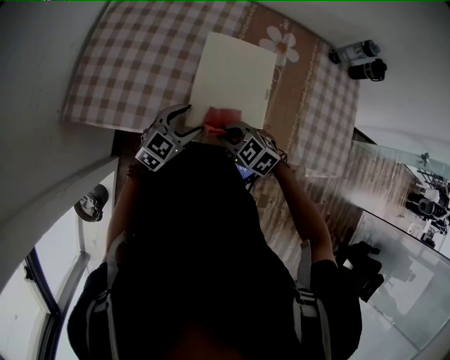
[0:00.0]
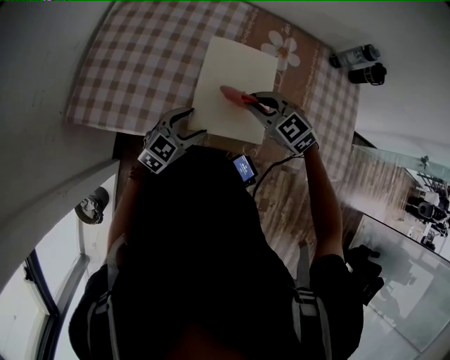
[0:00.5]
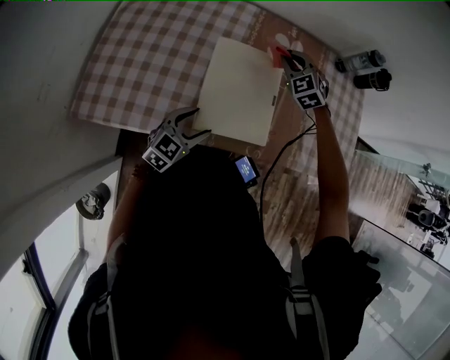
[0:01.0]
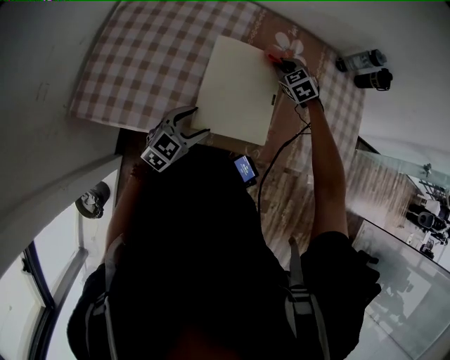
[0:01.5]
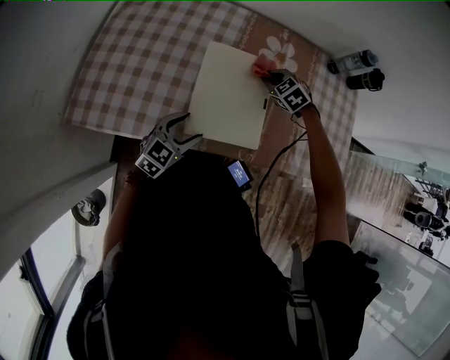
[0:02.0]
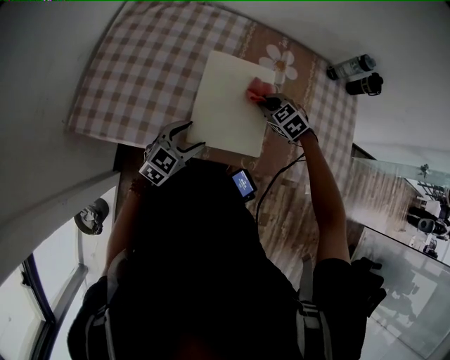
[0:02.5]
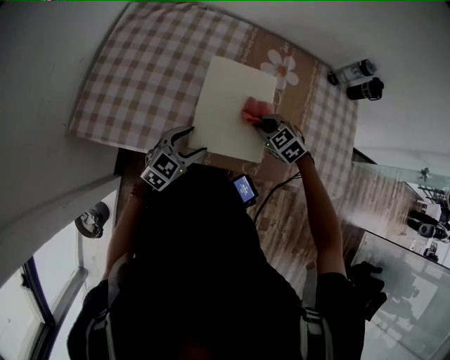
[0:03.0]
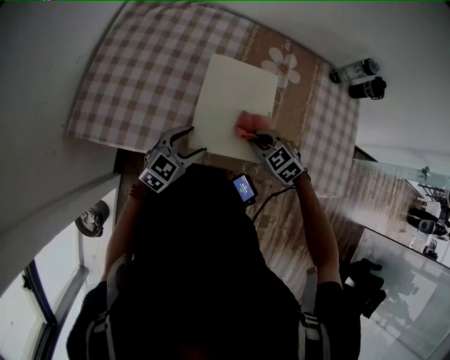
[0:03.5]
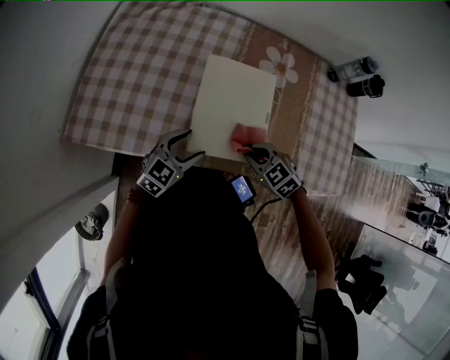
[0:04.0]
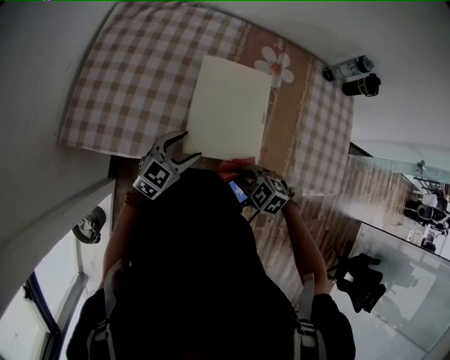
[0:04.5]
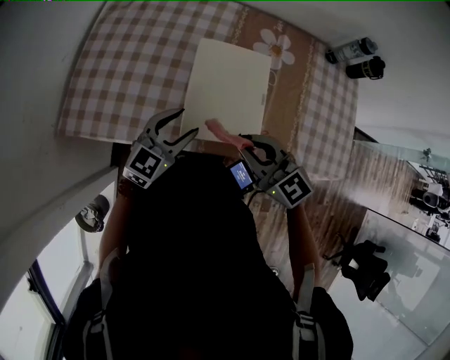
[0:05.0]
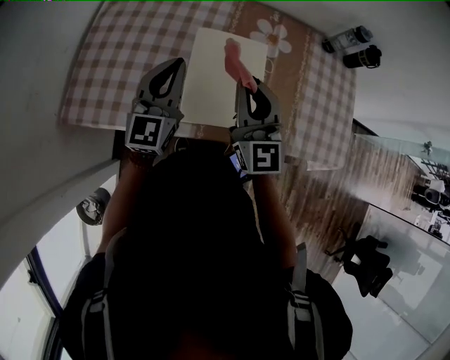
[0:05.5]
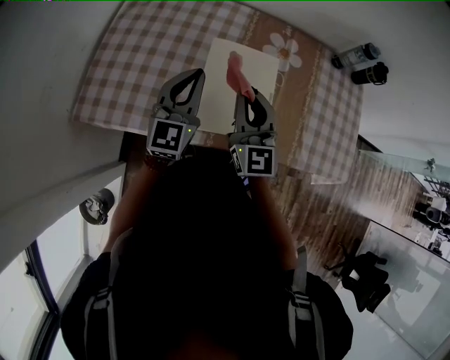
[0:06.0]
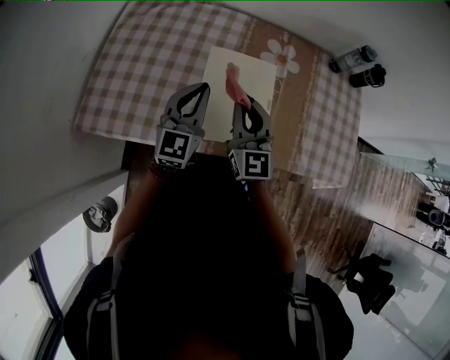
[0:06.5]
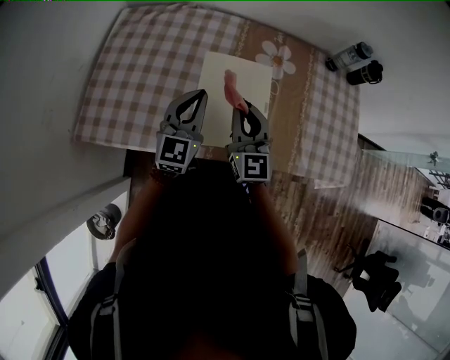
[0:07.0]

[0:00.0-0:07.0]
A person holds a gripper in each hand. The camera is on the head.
0:00.0 to 0:02.0: The right gripper reaches some 10 cm upward, then returns, and turns by about 20 degrees.
0:02.0 to 0:03.5: The right gripper travels backward by some 15 cm.
0:03.5 to 0:05.0: The left gripper moves upward, roughly 5 cm. Meanwhile the right gripper heads upward, covering about 15 cm, and angles its fingers upward, by roughly 30 degrees.
0:05.0 to 0:07.0: The left gripper travels upward and forward by some 10 cm, rotates about 20 degrees, and closes up. Meanwhile the right gripper goes approximately 10 cm forward, and rotates some 40 degrees.

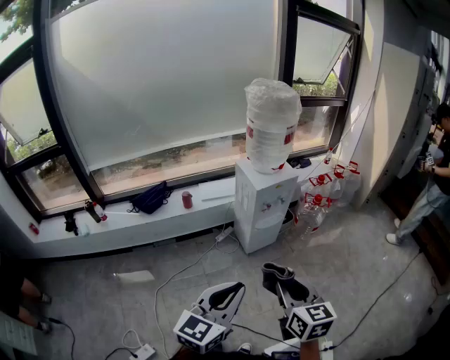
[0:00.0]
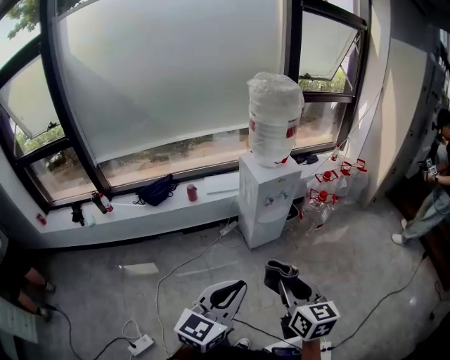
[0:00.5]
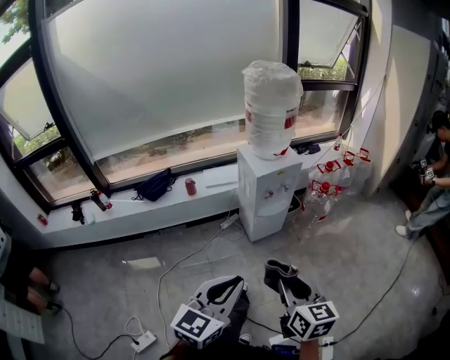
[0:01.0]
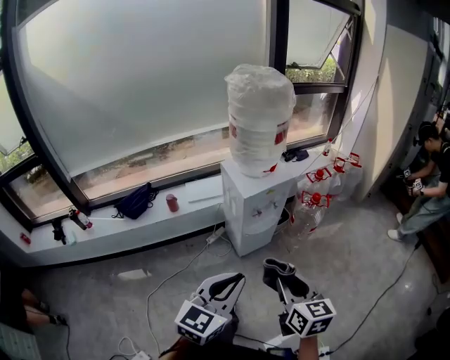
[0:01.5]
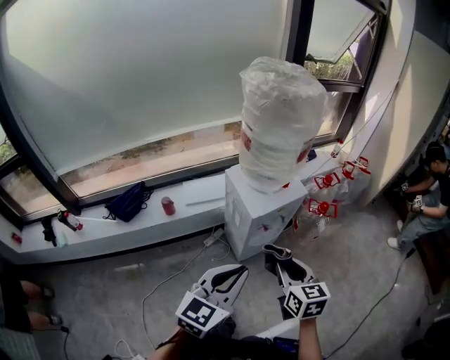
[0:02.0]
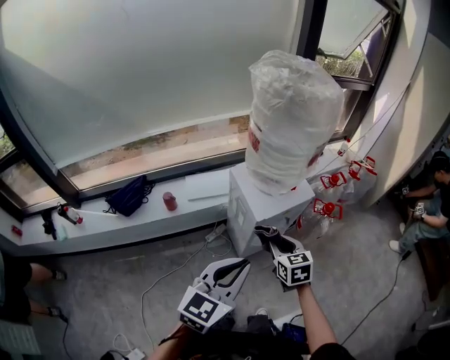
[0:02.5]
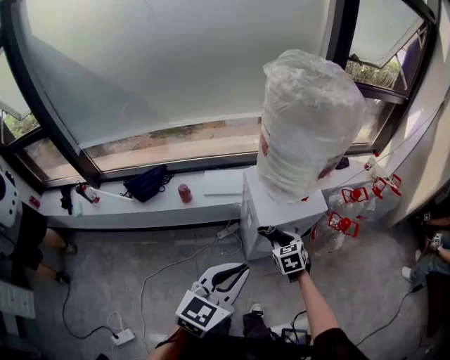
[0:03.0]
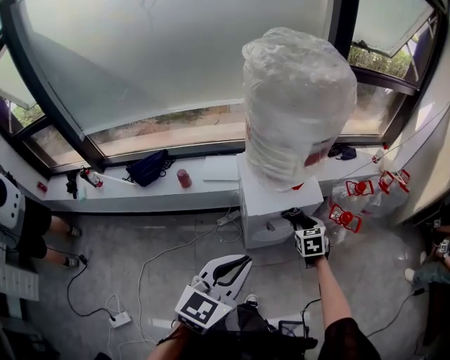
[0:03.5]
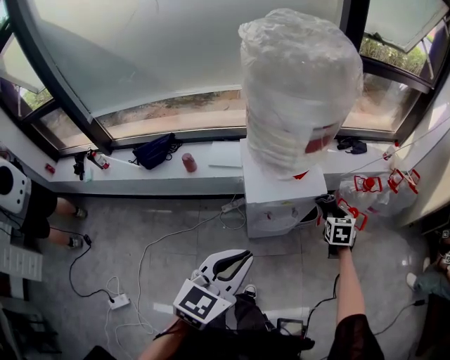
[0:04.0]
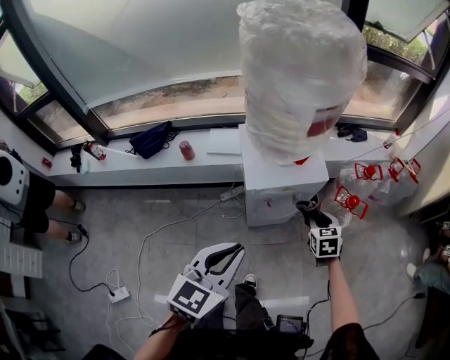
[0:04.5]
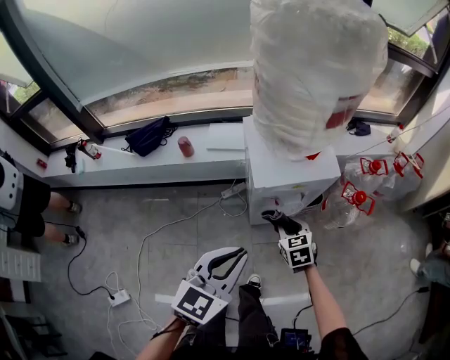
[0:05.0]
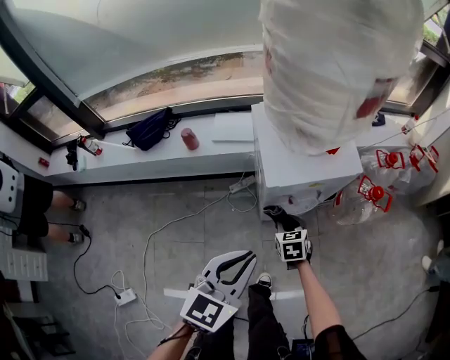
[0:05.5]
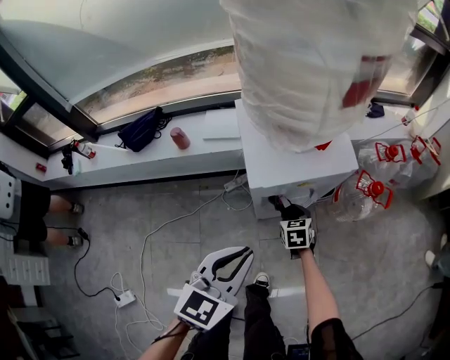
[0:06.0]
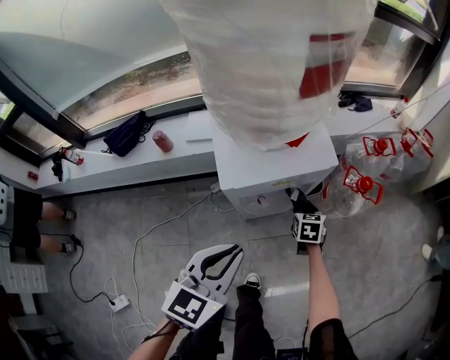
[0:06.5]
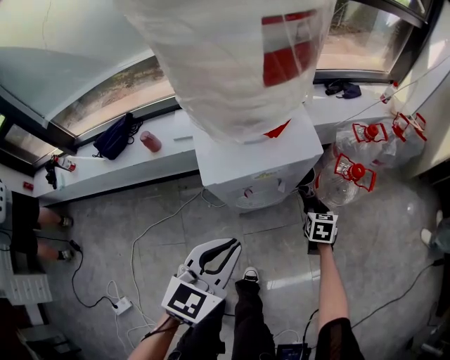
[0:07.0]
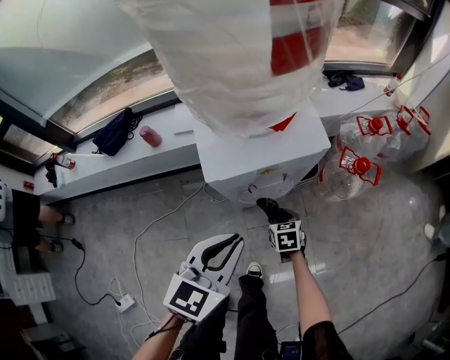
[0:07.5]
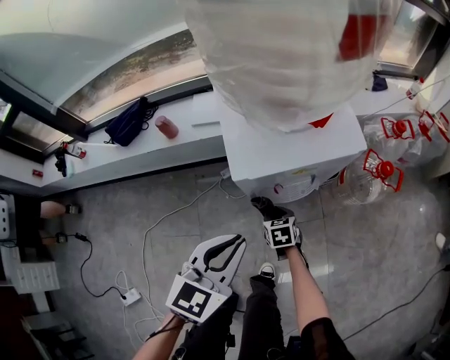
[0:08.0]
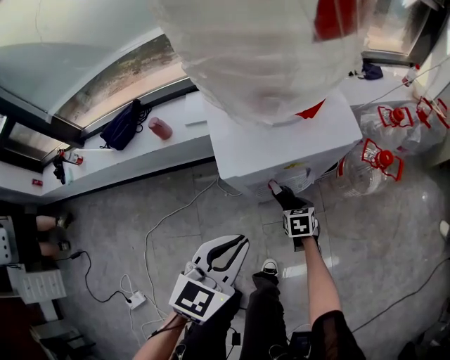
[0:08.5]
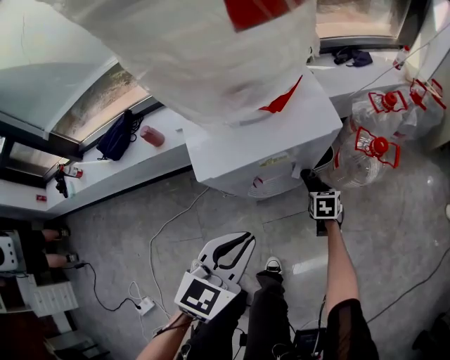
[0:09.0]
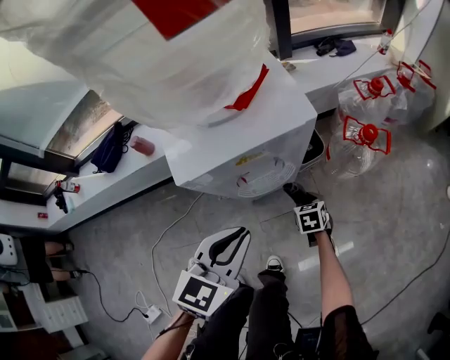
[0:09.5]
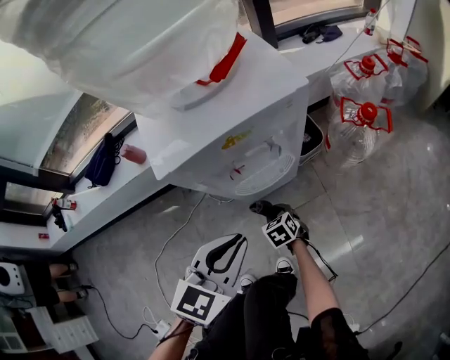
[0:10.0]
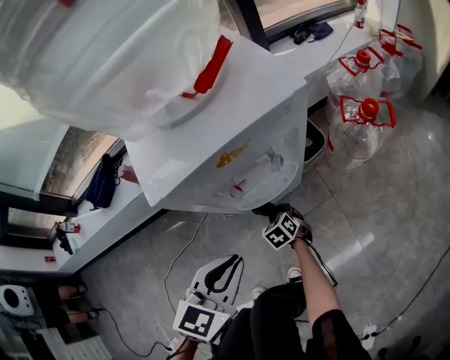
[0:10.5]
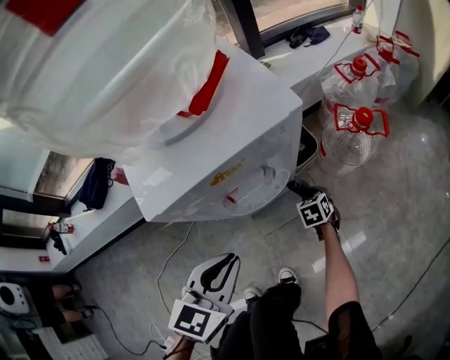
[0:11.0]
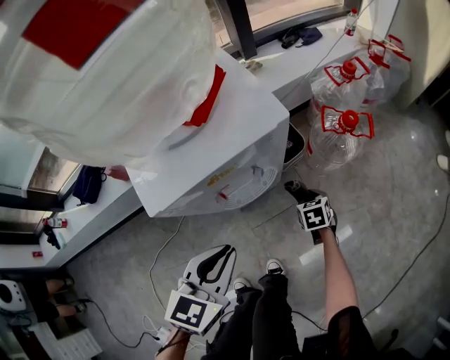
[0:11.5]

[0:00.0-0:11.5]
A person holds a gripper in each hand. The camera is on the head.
0:00.0 to 0:02.0: The grippers both shift forward by about 35 cm.
0:02.0 to 0:04.0: The left gripper travels to the right and forward by some 15 cm, and changes its angle by approximately 20 degrees. The right gripper heads forward, to the right and downward, covering roughly 40 cm, and changes its angle by approximately 20 degrees.
0:04.0 to 0:06.0: The left gripper moves downward, roughly 15 cm, while the right gripper heads downward and to the left, covering about 30 cm.
0:06.0 to 0:07.5: The right gripper heads downward, covering roughly 5 cm, and goes to the right and returns, approximately 20 cm each way. The left gripper heads to the right, covering roughly 5 cm.
0:07.5 to 0:09.5: The left gripper heads downward, covering roughly 10 cm. Meanwhile the right gripper travels to the right and downward by about 15 cm.
0:09.5 to 0:11.5: The right gripper goes to the left and returns, approximately 15 cm each way.

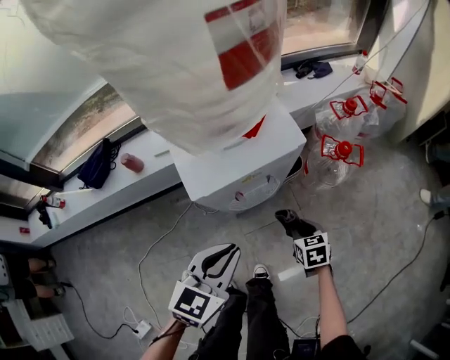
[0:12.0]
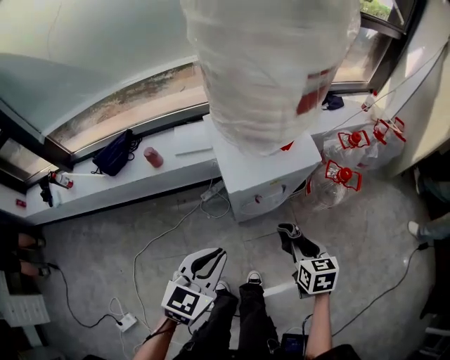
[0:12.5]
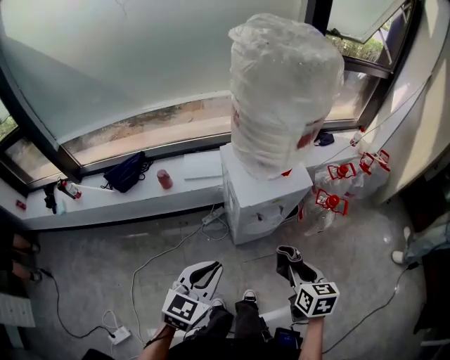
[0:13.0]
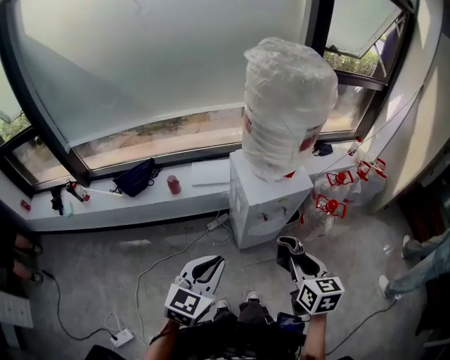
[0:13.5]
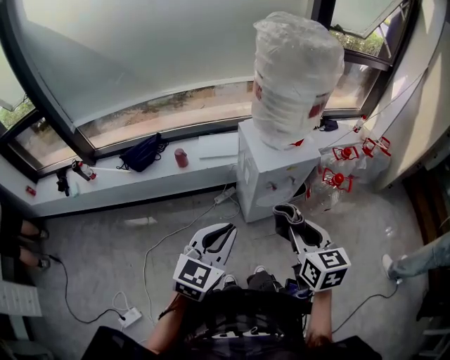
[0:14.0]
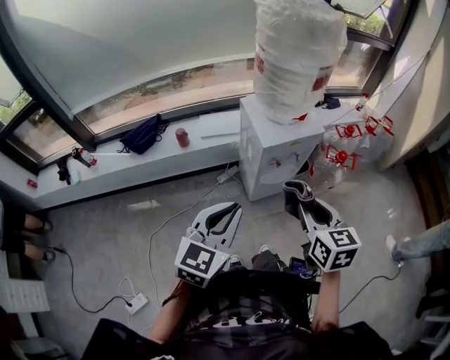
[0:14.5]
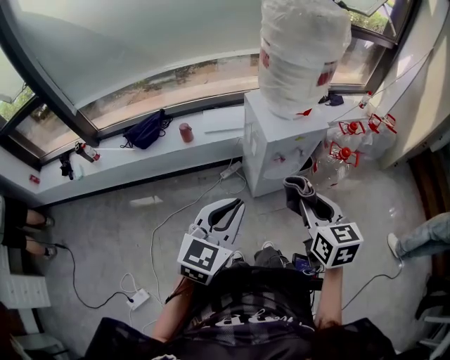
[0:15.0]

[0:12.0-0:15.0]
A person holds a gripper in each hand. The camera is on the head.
0:12.0 to 0:13.5: The left gripper goes approximately 30 cm upward, to the left and backward, while the right gripper moves upward and backward, about 40 cm, and swivels about 20 degrees.
0:13.5 to 0:15.0: The right gripper shifts by roughly 5 cm. The left gripper changes place by roughly 5 cm.

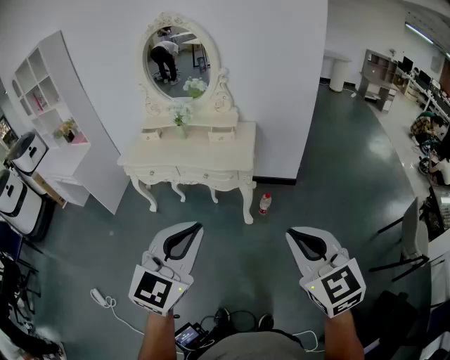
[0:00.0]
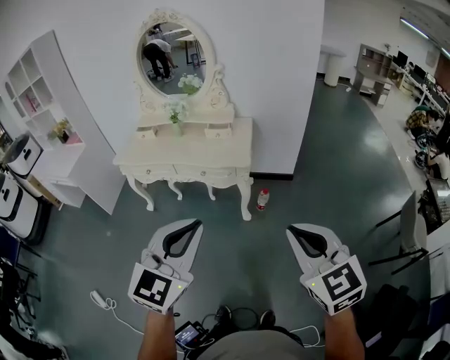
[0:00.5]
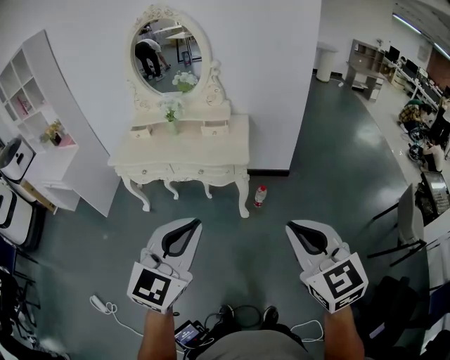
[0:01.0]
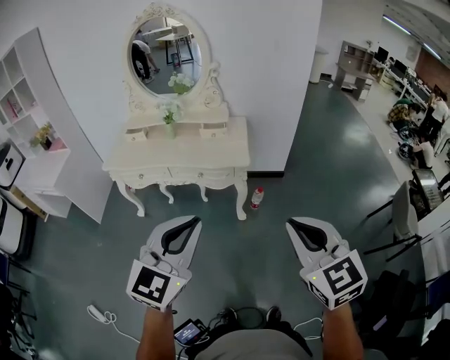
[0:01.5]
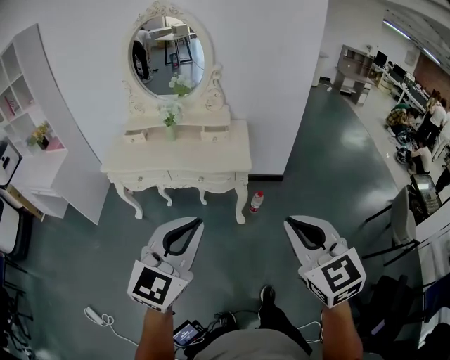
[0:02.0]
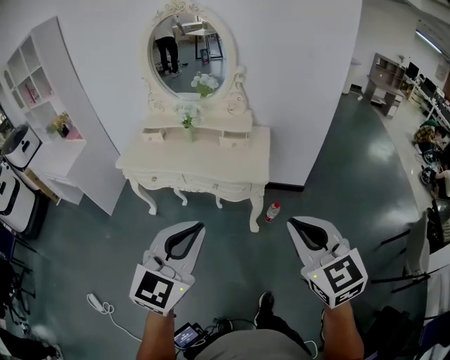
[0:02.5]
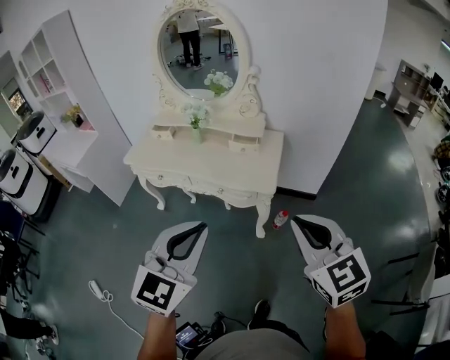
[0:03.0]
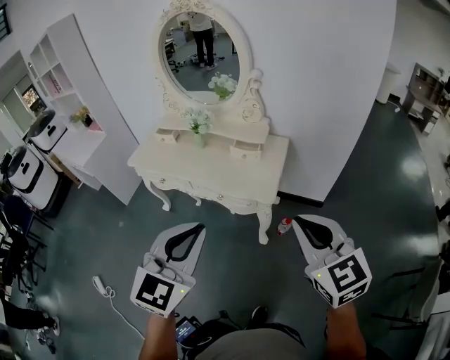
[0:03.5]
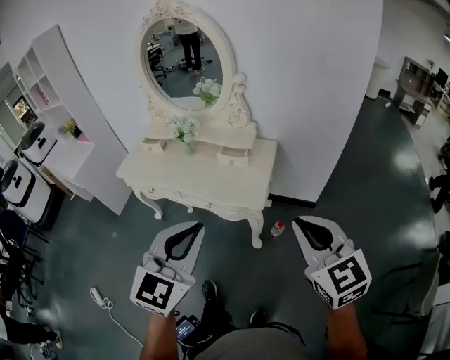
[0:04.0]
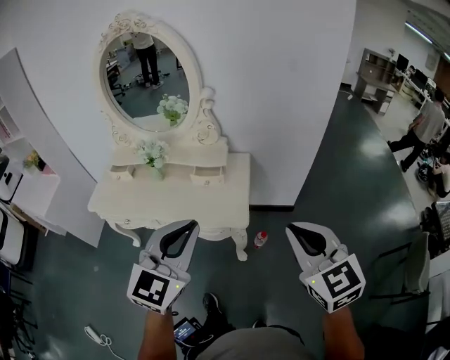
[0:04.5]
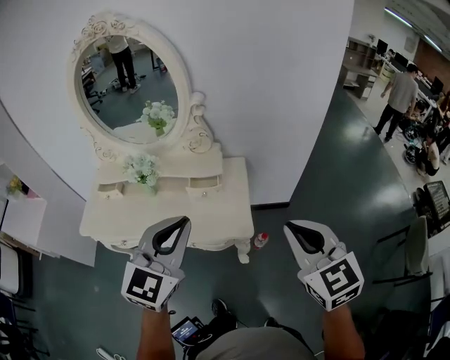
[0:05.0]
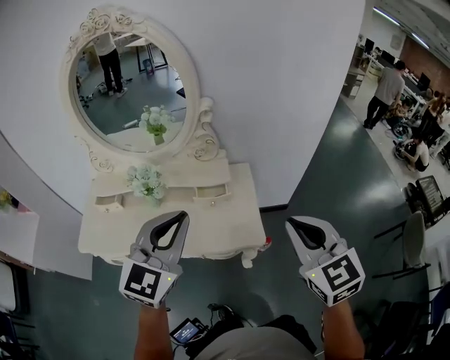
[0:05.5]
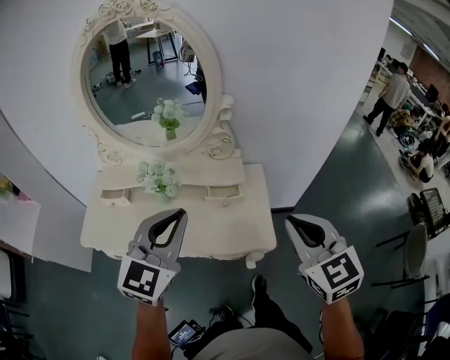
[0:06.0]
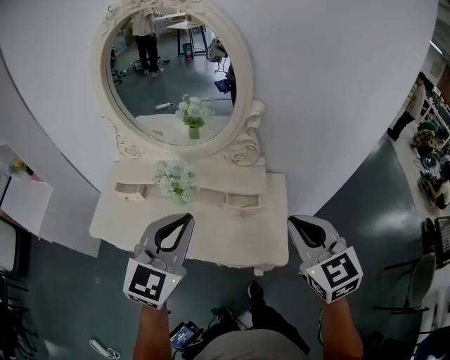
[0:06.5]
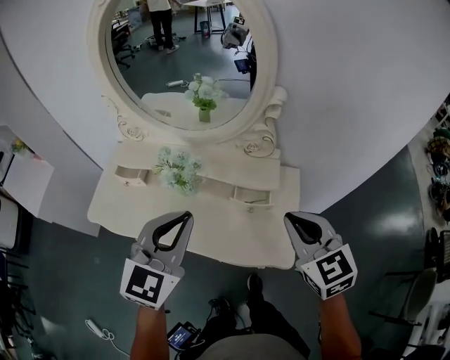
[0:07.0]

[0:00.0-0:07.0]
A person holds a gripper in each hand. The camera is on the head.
0:00.0 to 0:02.0: Both grippers travel together to the left and forward, roughly 15 cm.
0:02.0 to 0:03.5: Both grippers travel together forward and to the right, about 25 cm. The left gripper changes its angle by roughly 20 degrees.
0:03.5 to 0:05.0: The left gripper is displaced forward by some 25 cm; the right gripper goes approximately 15 cm forward, and changes its angle by roughly 20 degrees.
0:05.0 to 0:07.0: The left gripper travels to the left and forward by approximately 25 cm. Meanwhile the right gripper shifts about 30 cm forward, to the left and downward.
